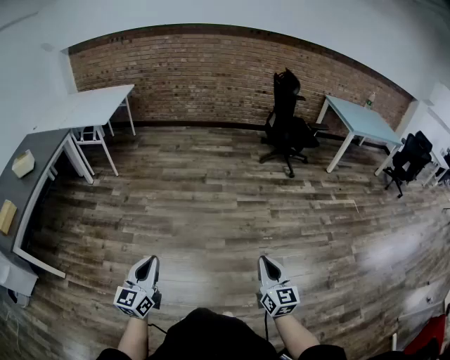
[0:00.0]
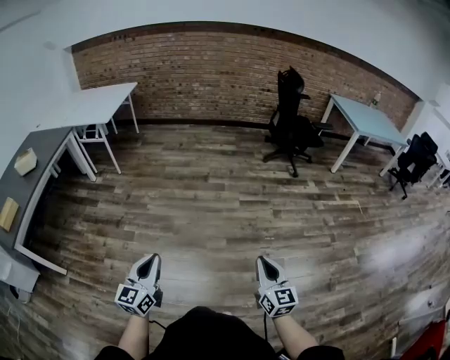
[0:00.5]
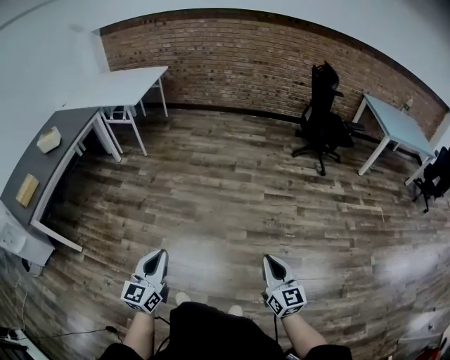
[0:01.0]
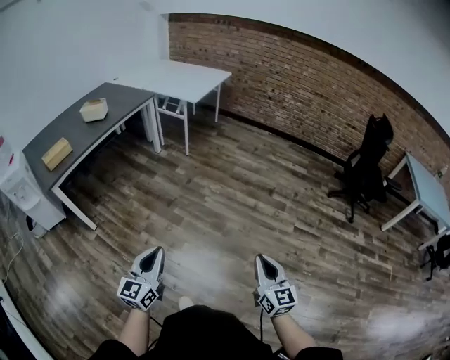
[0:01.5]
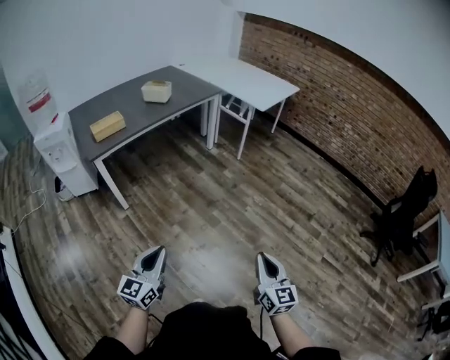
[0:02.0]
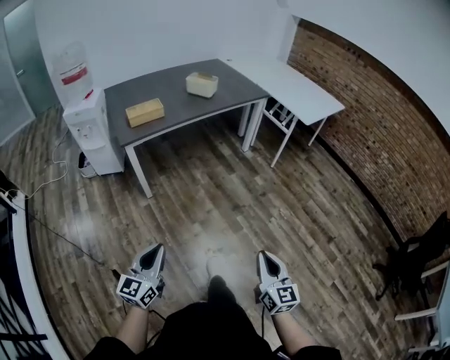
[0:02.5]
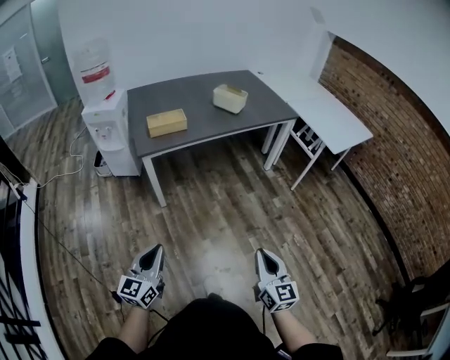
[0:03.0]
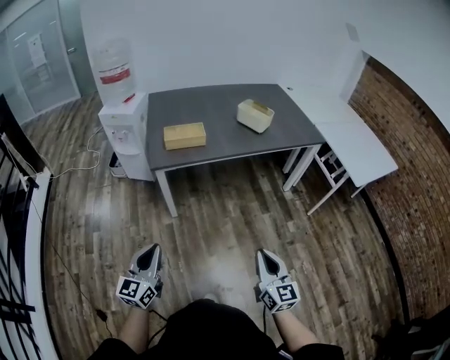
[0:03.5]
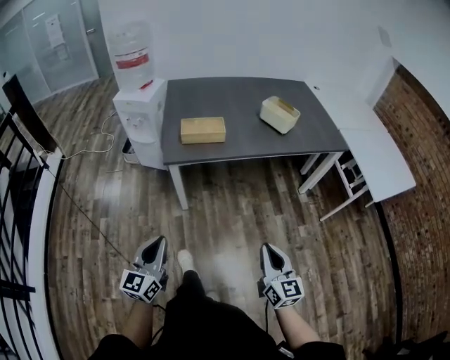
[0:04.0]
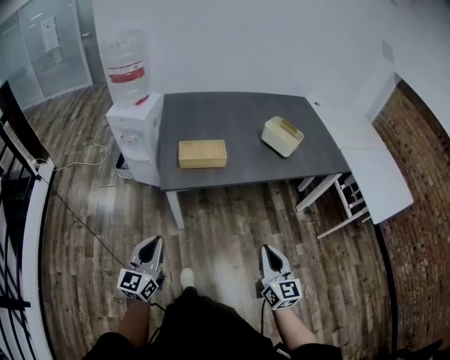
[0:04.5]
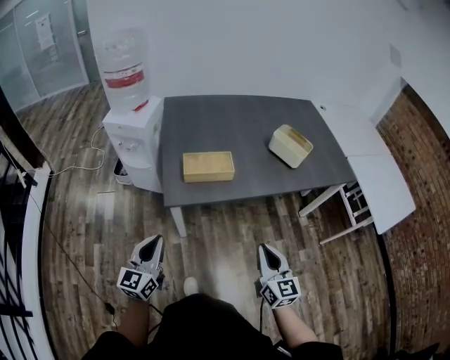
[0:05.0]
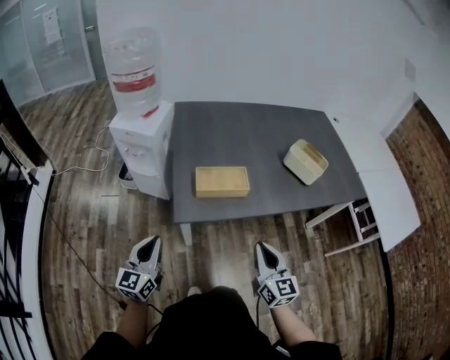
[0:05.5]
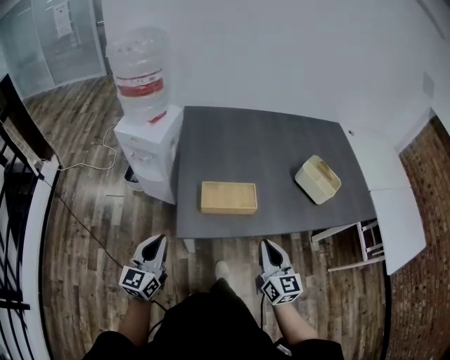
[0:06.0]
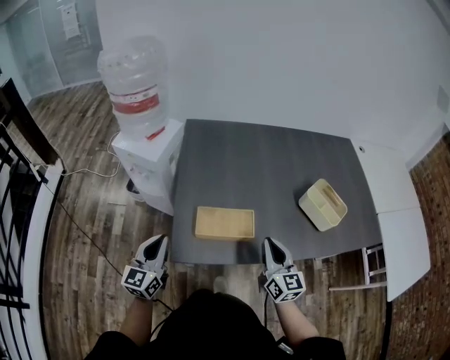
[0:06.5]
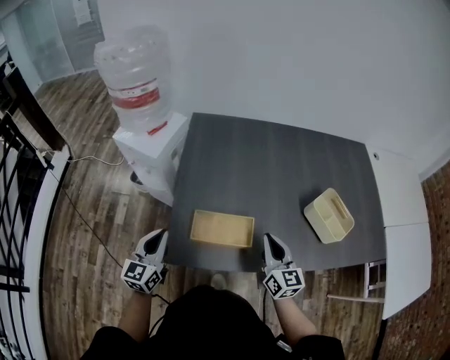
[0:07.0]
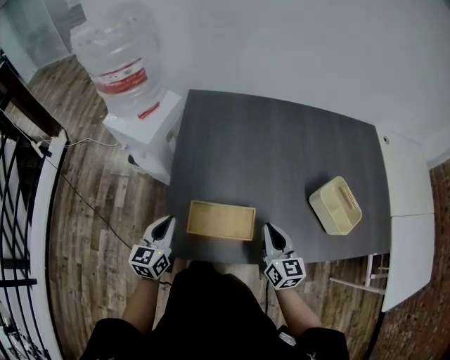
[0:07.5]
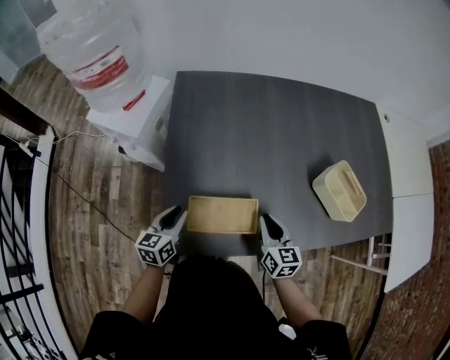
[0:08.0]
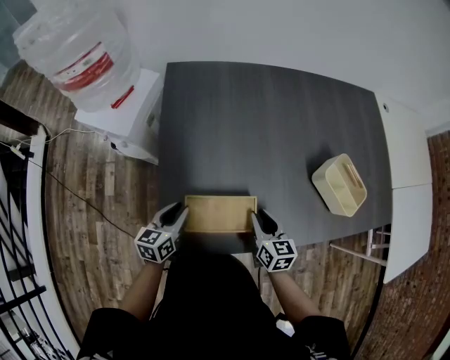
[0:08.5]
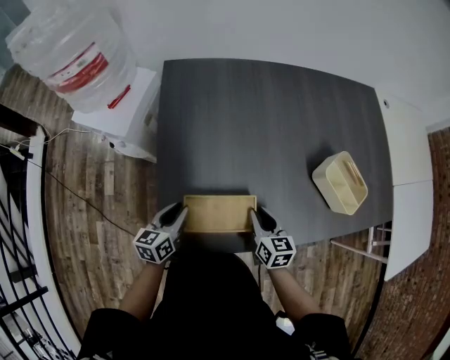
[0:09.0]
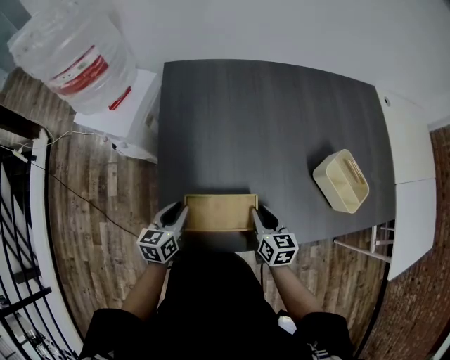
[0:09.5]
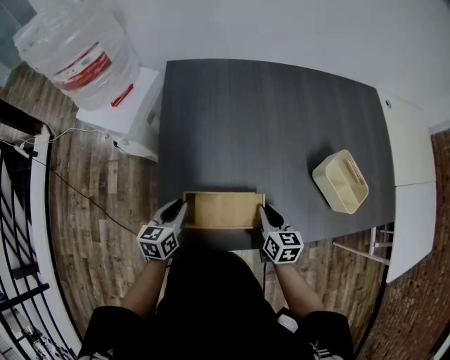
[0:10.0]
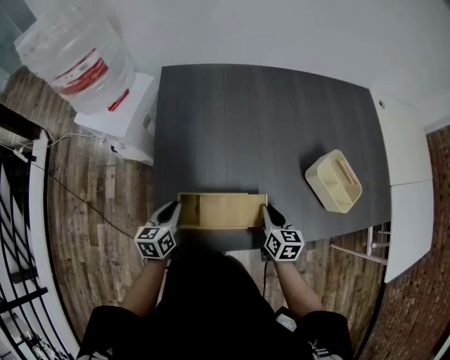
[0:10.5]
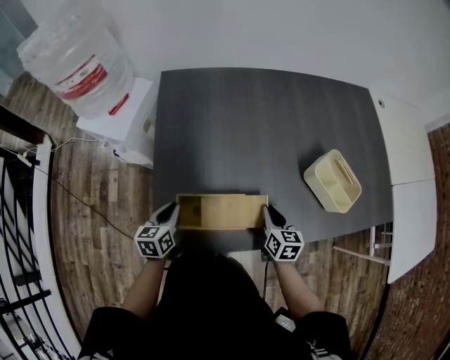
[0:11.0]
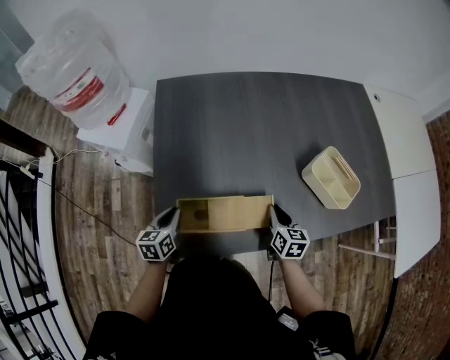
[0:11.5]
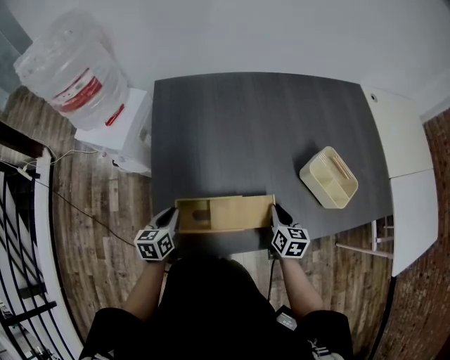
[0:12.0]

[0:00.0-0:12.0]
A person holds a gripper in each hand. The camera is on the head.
0:00.0 to 0:02.0: The left gripper changes place by approximately 30 cm, and changes its angle by roughly 40 degrees. The right gripper moves approximately 40 cm, and turns by about 40 degrees.
0:02.0 to 0:04.0: The right gripper shifts by approximately 50 cm, and turns by about 40 degrees; the left gripper ends up approximately 30 cm from where it was, and changes its angle by approximately 40 degrees.
0:04.0 to 0:06.0: The two grippers go approximately 35 cm forward.
0:06.0 to 0:08.0: The left gripper travels forward, downward and to the right by some 20 cm, changes its angle by approximately 30 degrees, and opens; the right gripper moves forward and downward, some 20 cm.
0:08.0 to 0:10.0: The grippers move only a little.
0:10.0 to 0:12.0: The right gripper shifts approximately 10 cm to the right.

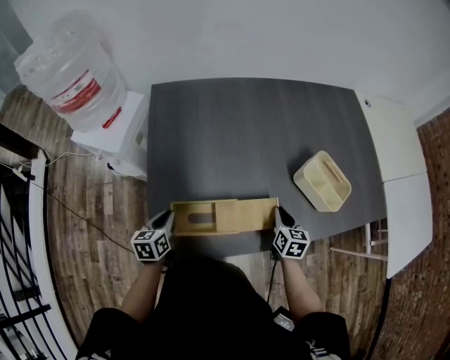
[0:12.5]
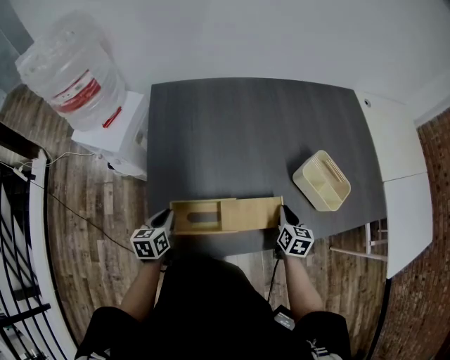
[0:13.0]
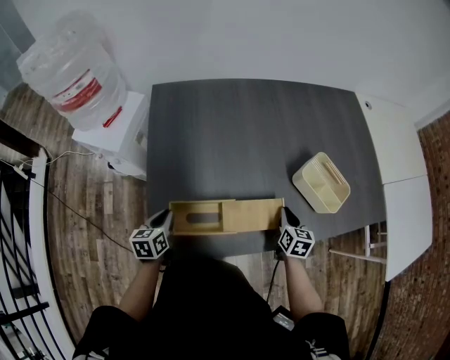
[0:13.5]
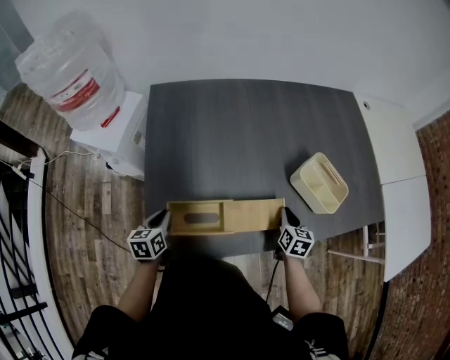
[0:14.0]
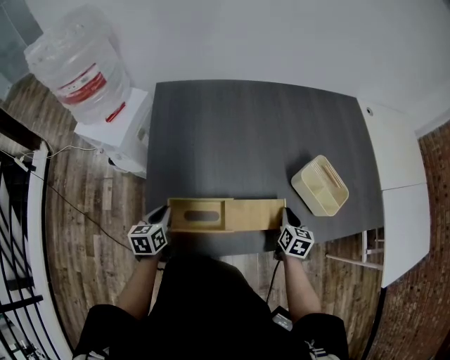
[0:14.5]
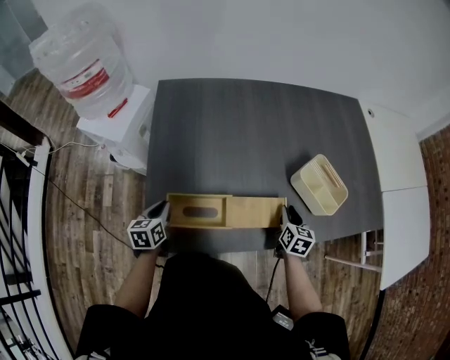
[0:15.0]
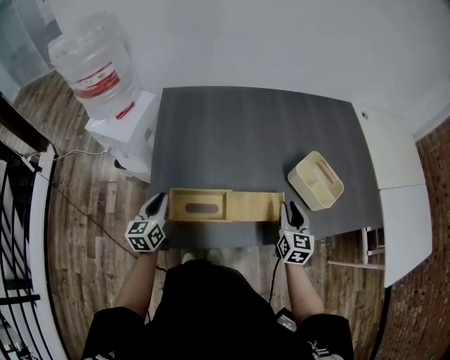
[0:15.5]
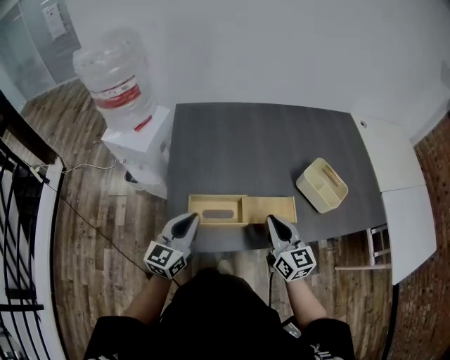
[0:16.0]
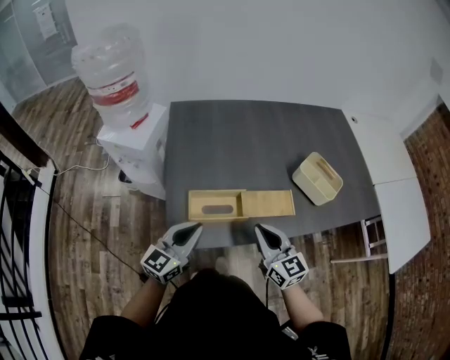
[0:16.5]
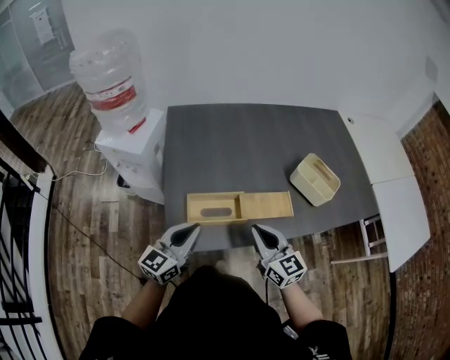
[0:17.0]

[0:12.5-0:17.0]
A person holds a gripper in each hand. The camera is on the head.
0:12.5 to 0:14.5: The grippers move only a little.
0:14.5 to 0:17.0: The right gripper is displaced to the left, upward and backward by some 30 cm, and angles its fingers upward, by roughly 30 degrees; the left gripper moves upward, backward and to the right, approximately 20 cm, and tips its fingers upward by some 40 degrees.

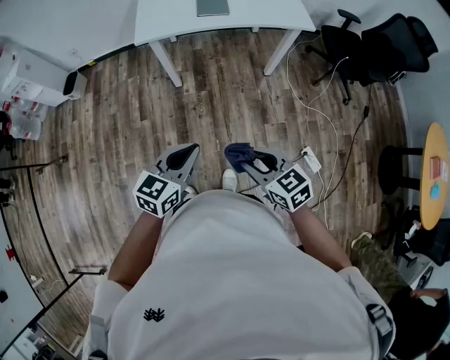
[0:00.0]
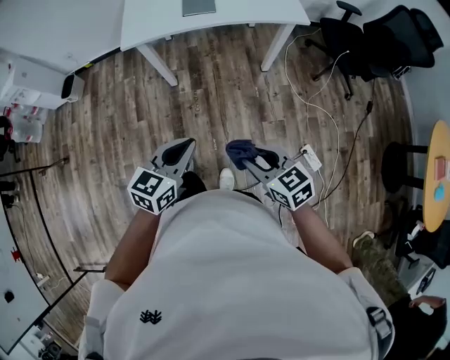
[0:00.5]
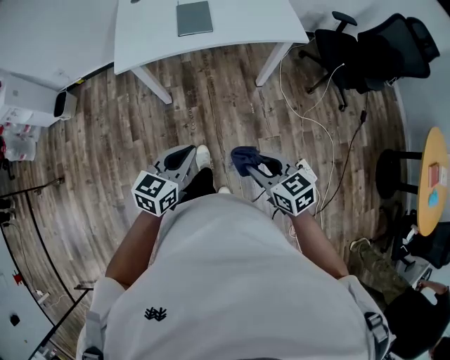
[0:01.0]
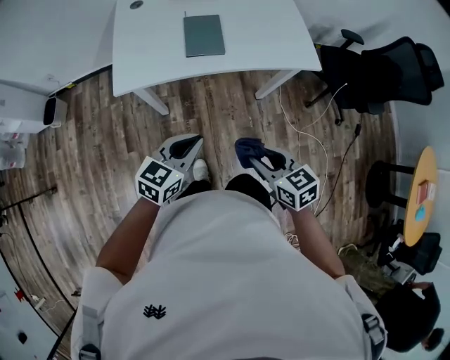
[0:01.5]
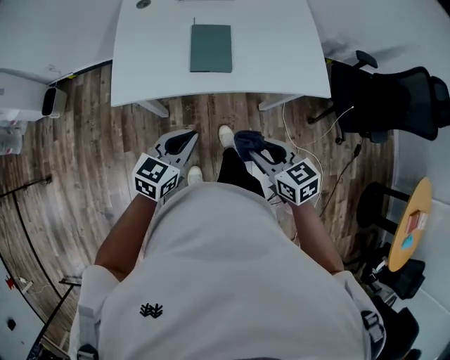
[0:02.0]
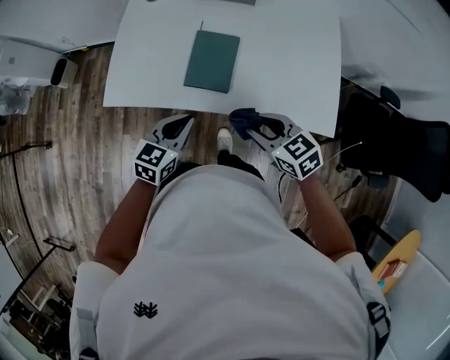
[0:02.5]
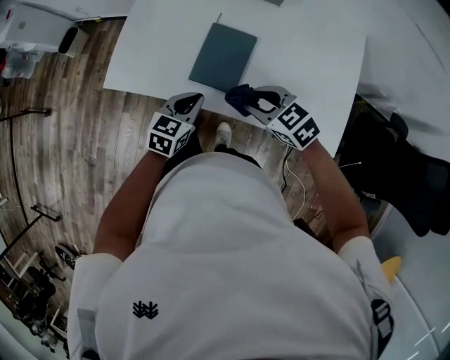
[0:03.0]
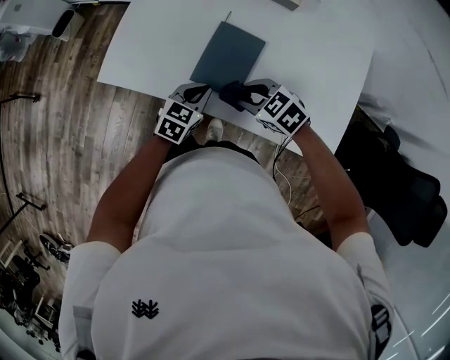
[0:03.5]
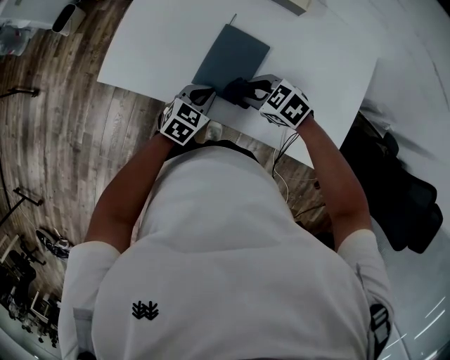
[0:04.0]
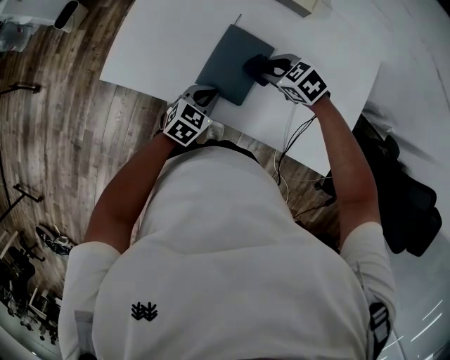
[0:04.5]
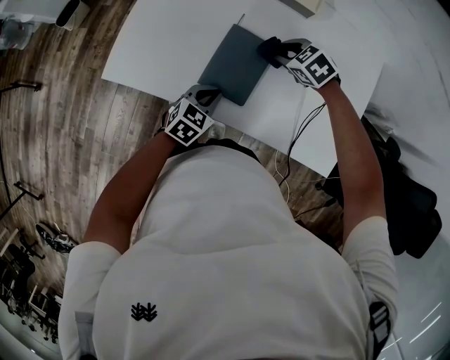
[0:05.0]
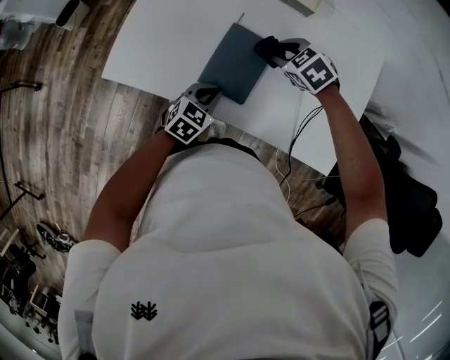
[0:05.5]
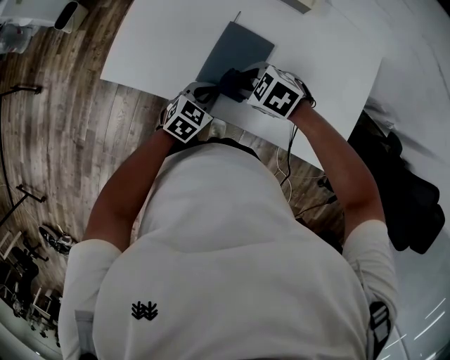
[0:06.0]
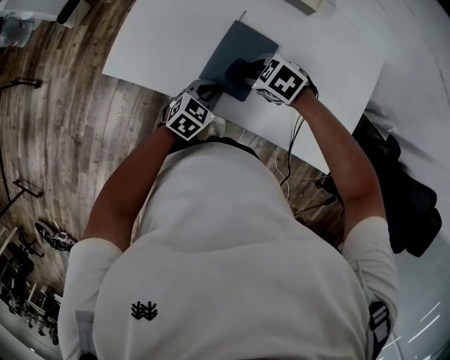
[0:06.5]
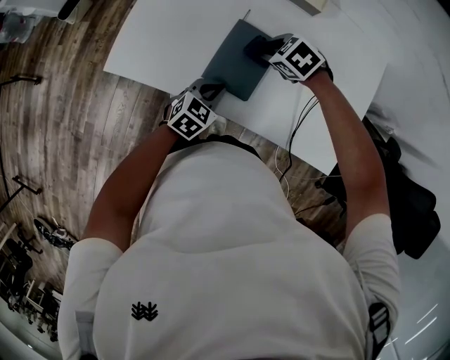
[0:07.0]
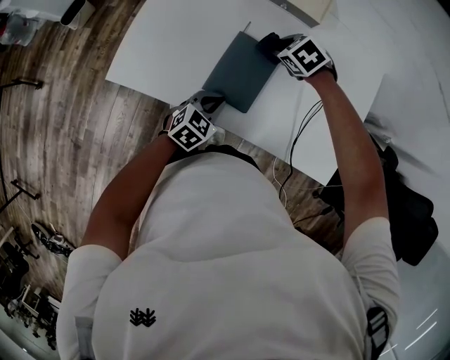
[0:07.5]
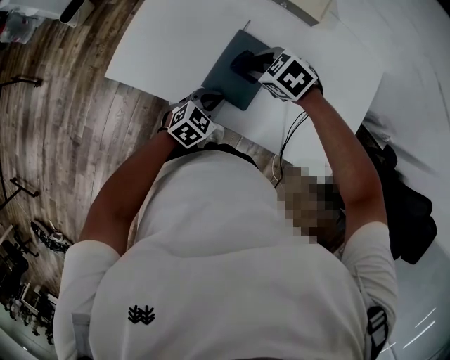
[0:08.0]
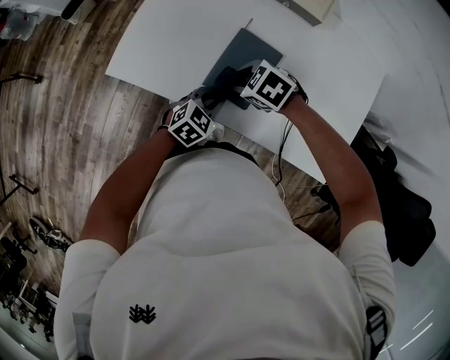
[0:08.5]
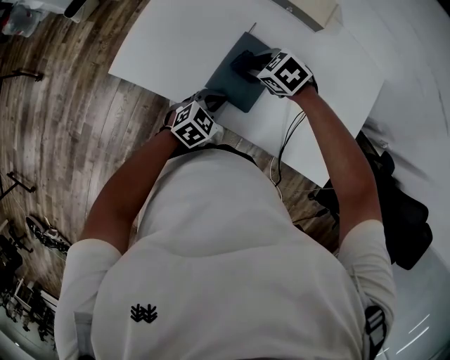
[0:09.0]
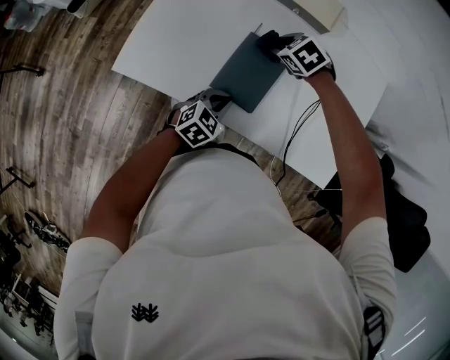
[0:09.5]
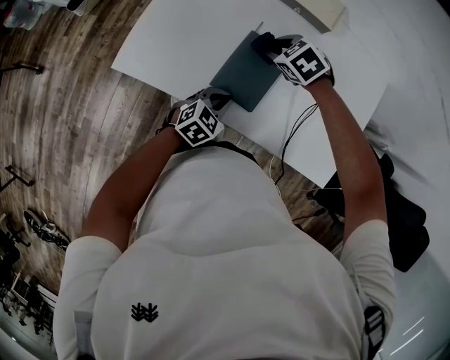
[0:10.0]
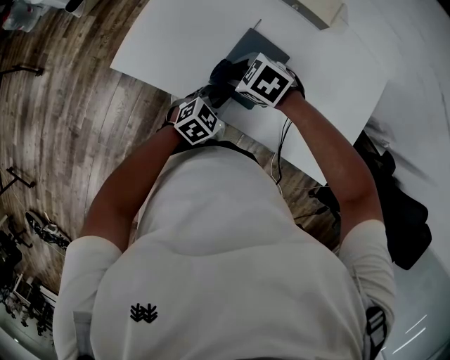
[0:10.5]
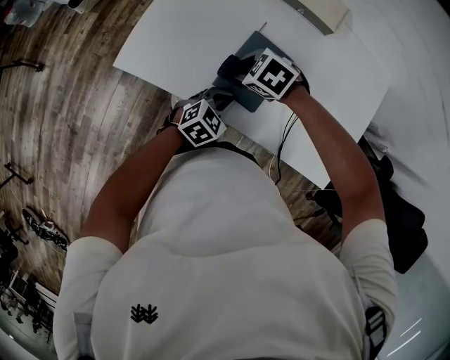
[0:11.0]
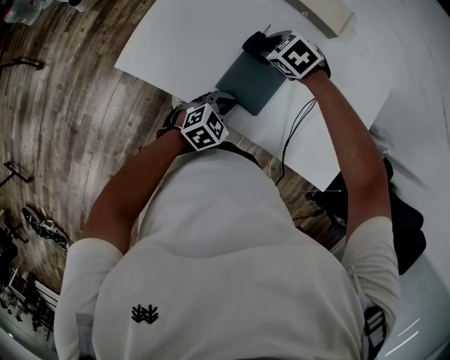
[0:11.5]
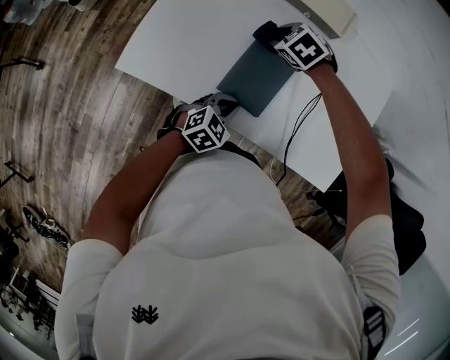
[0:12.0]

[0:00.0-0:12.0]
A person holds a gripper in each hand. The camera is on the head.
0:00.0 to 0:02.0: Both grippers travel together forward, approximately 40 cm.
0:02.0 to 0:04.0: The left gripper changes place by some 30 cm, and swivels roughly 30 degrees. Meanwhile the right gripper changes place by about 35 cm, and swivels some 60 degrees.
0:08.0 to 0:10.0: The right gripper changes place by some 5 cm.
